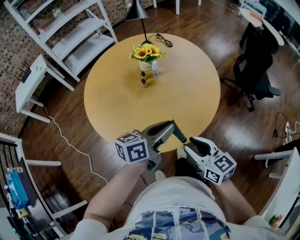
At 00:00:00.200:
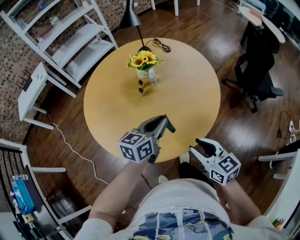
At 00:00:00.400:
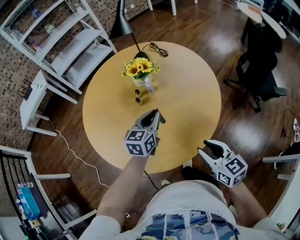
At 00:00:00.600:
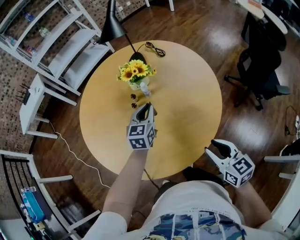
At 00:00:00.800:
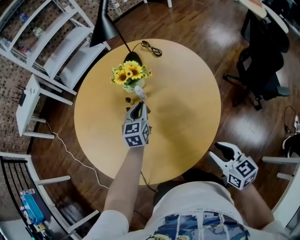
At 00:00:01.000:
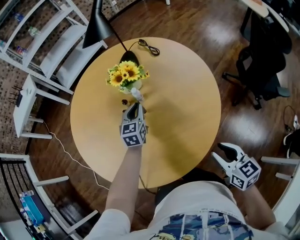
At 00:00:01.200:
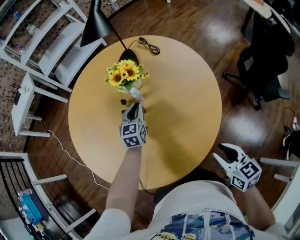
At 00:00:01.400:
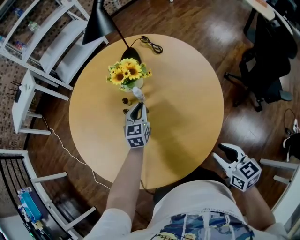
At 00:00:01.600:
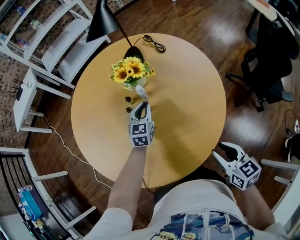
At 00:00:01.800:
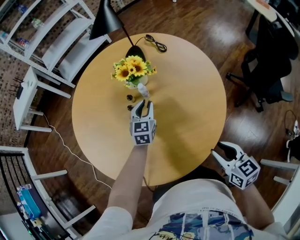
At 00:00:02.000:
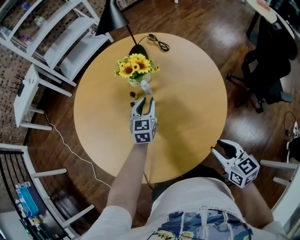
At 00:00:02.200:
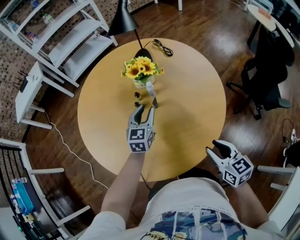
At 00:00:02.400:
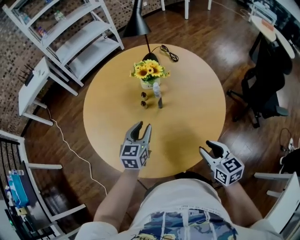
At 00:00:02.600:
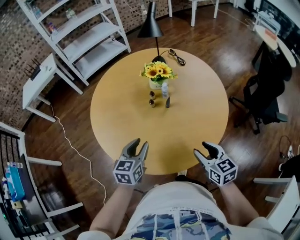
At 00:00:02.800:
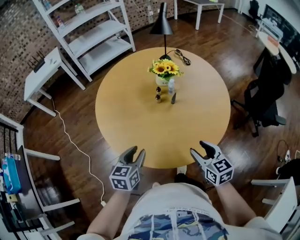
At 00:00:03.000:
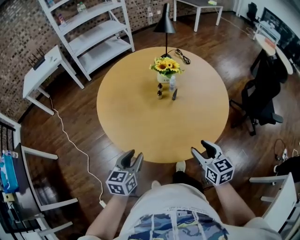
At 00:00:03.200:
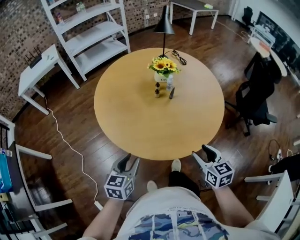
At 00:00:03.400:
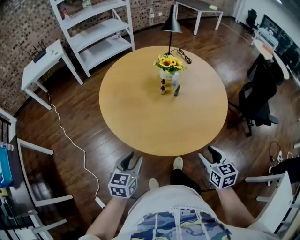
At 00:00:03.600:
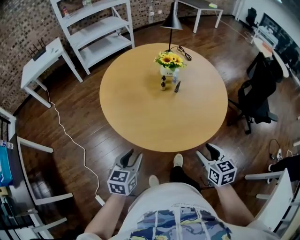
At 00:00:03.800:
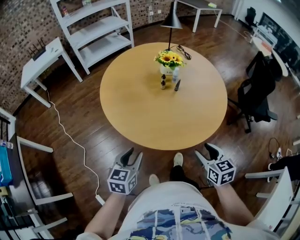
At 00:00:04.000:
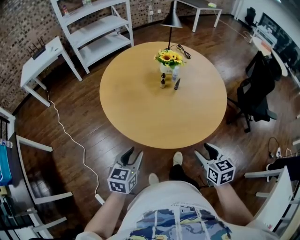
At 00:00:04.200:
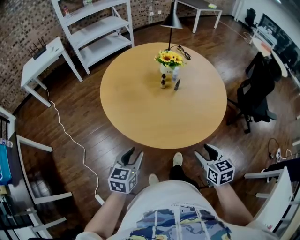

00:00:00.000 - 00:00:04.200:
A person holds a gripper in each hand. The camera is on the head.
00:00:00.000 - 00:00:01.400: The right gripper travels to the right and forward by roughly 30 cm, while the left gripper shifts about 40 cm forward and downward, and turns by about 60 degrees.
00:00:01.400 - 00:00:02.800: The left gripper goes some 40 cm backward and to the left, and opens up; the right gripper is displaced to the left by roughly 20 cm.
00:00:02.800 - 00:00:04.200: The left gripper travels backward and to the left by some 15 cm. The right gripper moves backward, approximately 15 cm.

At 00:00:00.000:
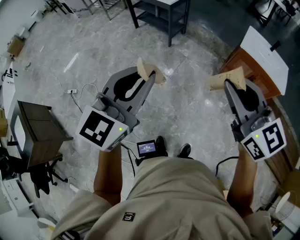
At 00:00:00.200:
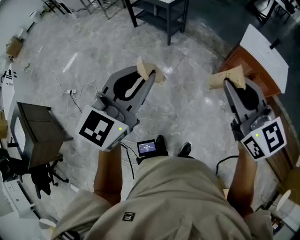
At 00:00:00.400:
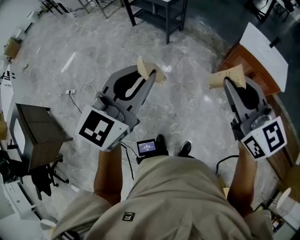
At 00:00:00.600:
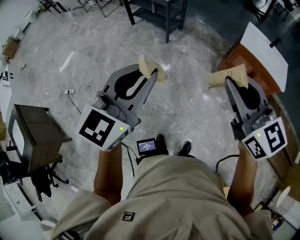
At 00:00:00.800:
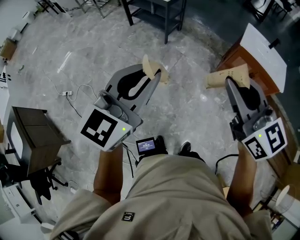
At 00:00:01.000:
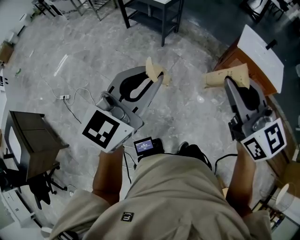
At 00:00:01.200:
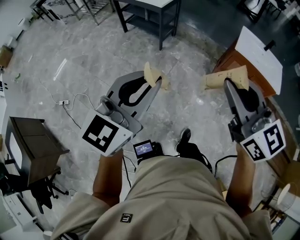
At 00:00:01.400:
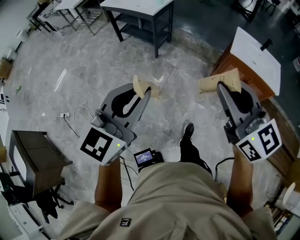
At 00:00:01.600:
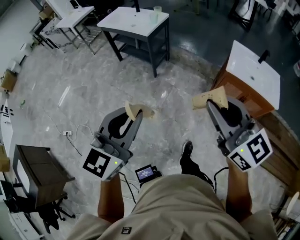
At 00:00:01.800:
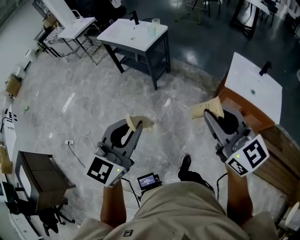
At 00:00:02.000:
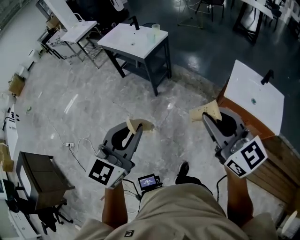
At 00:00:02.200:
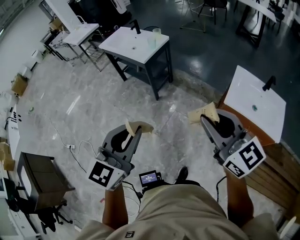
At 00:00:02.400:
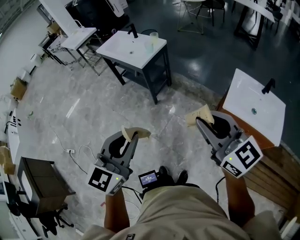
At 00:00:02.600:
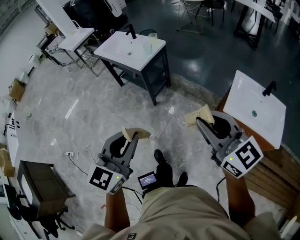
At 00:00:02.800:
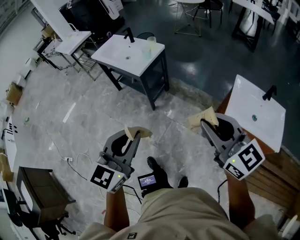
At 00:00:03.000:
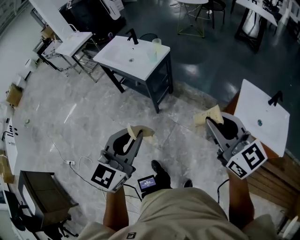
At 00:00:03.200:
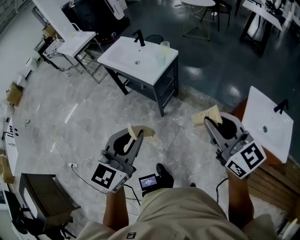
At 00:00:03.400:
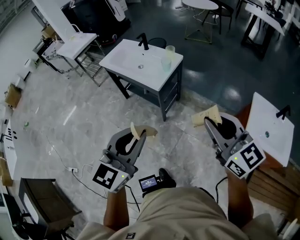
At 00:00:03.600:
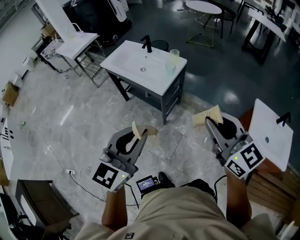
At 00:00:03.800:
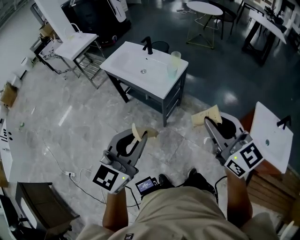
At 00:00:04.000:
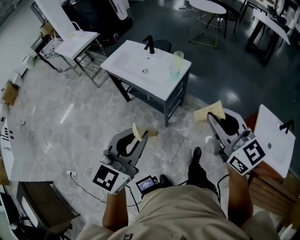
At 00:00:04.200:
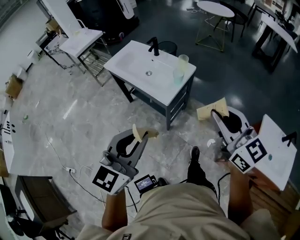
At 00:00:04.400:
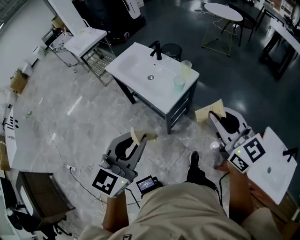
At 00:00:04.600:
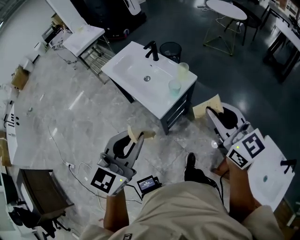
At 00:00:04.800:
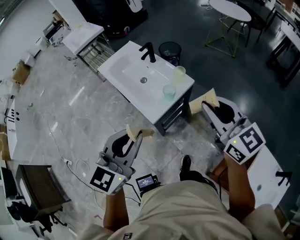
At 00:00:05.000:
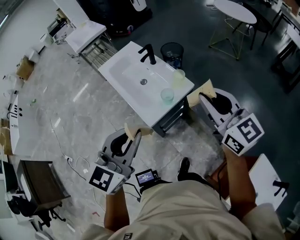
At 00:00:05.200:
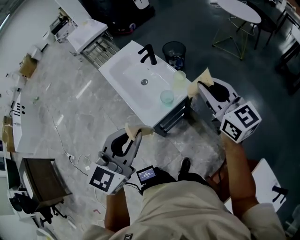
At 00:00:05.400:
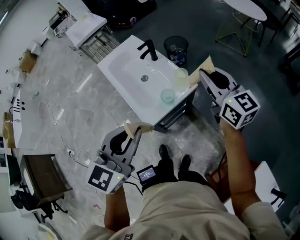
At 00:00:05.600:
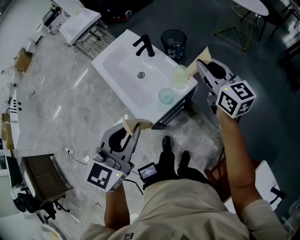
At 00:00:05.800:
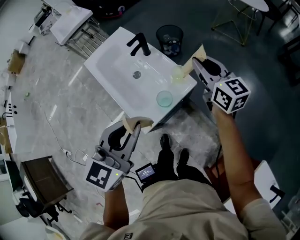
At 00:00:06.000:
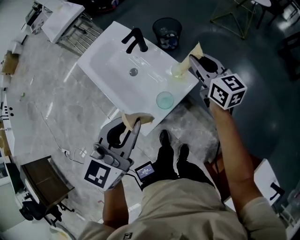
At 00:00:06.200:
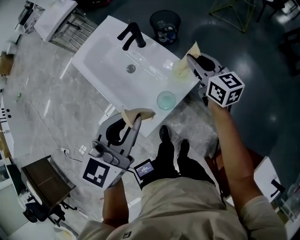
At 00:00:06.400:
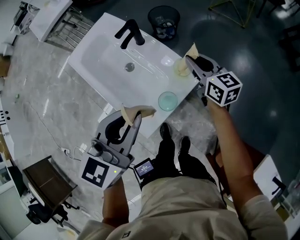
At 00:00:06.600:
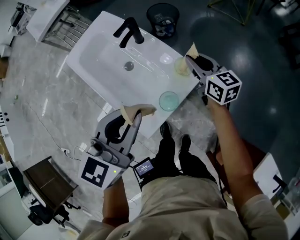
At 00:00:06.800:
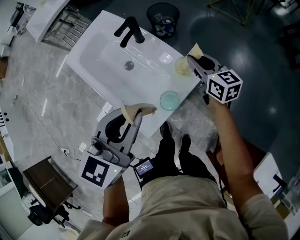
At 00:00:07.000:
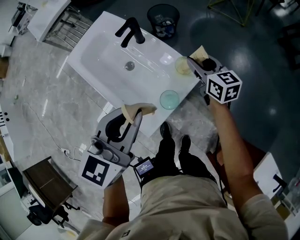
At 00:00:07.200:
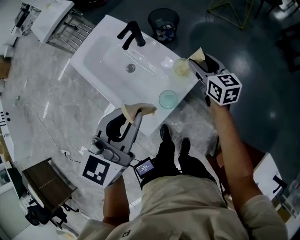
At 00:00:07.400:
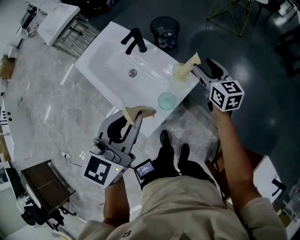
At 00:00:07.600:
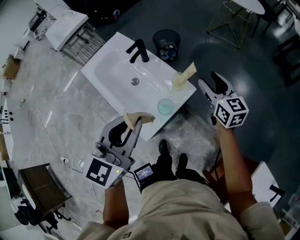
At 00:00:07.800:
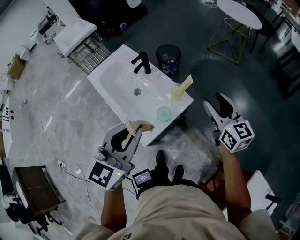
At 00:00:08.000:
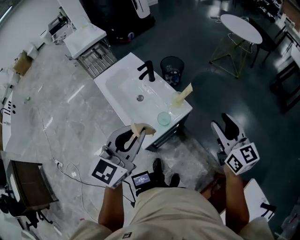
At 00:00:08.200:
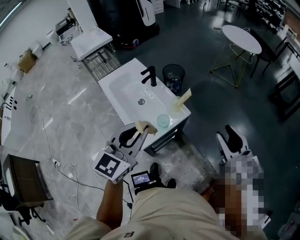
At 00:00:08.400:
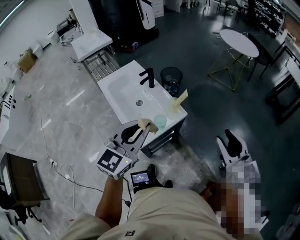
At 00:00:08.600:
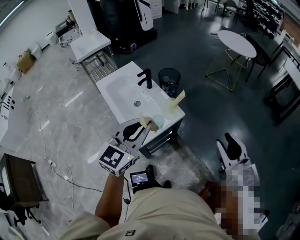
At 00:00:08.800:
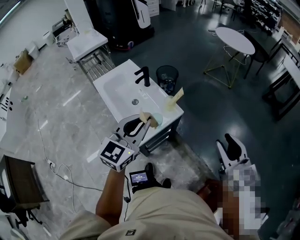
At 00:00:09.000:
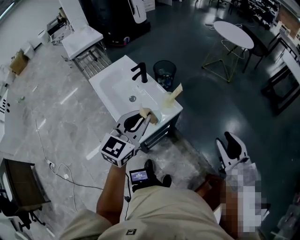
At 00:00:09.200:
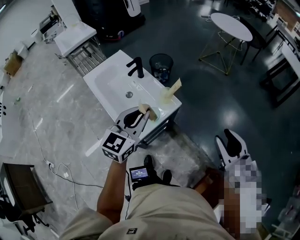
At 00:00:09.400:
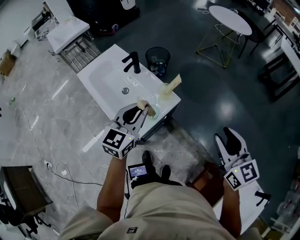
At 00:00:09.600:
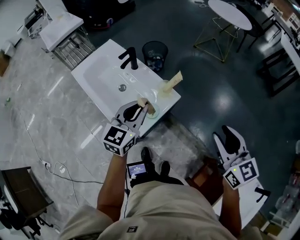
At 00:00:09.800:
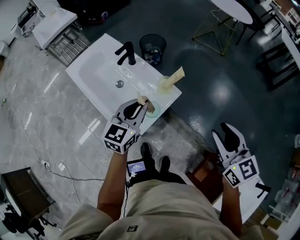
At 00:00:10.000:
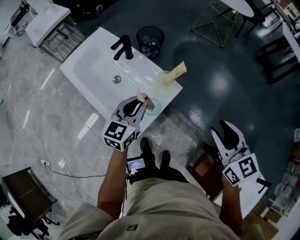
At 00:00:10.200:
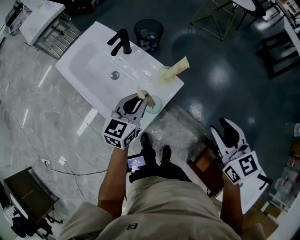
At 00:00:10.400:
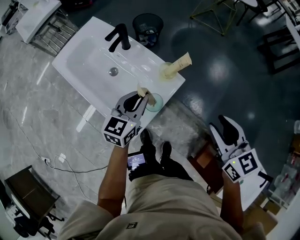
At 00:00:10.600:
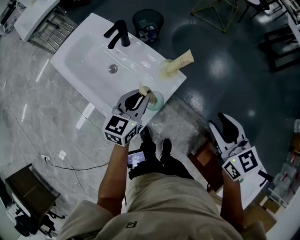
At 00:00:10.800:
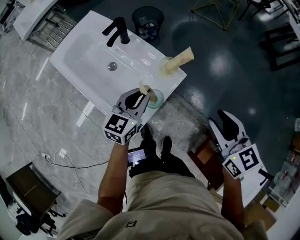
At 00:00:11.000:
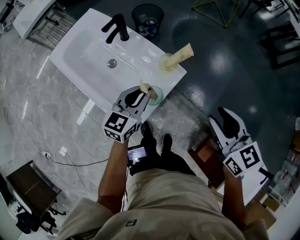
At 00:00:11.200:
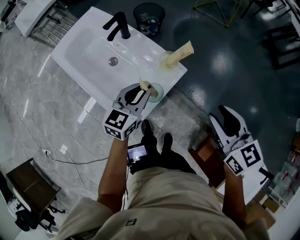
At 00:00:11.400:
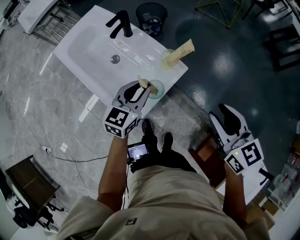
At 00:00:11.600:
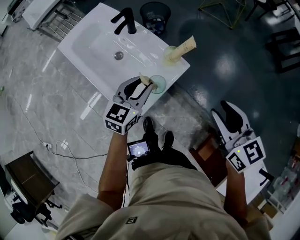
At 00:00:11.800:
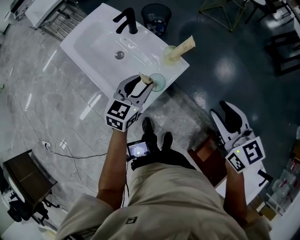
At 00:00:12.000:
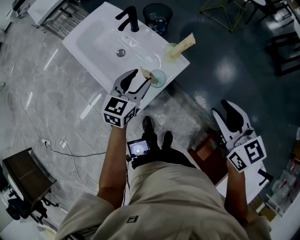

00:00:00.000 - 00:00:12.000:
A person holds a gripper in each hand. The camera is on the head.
00:00:00.000 - 00:00:01.600: Both grippers travel together forward, about 15 cm.
00:00:01.600 - 00:00:03.000: The two grippers go about 30 cm forward.
00:00:03.000 - 00:00:04.400: The grippers both shift forward by about 30 cm.
00:00:04.400 - 00:00:06.000: The right gripper heads forward, covering some 50 cm. The left gripper shifts about 35 cm forward and to the right.
00:00:06.000 - 00:00:07.600: The right gripper travels to the right by approximately 5 cm, reaches roughly 10 cm downward, then returns, and opens up.
00:00:07.600 - 00:00:09.000: The right gripper shifts approximately 30 cm backward and upward. Meanwhile the left gripper shifts about 5 cm to the right.
00:00:09.000 - 00:00:10.400: The left gripper shifts roughly 25 cm downward and forward, and swivels about 20 degrees. Meanwhile the right gripper shifts about 20 cm downward, to the left and forward.
00:00:10.400 - 00:00:12.000: The left gripper opens its fingers.

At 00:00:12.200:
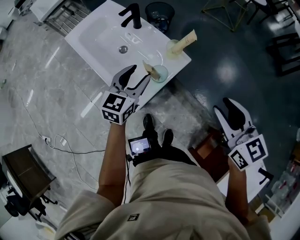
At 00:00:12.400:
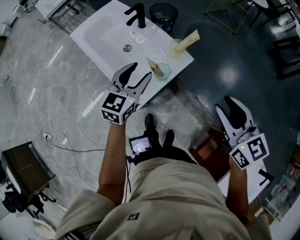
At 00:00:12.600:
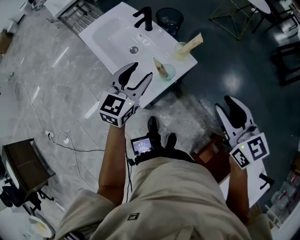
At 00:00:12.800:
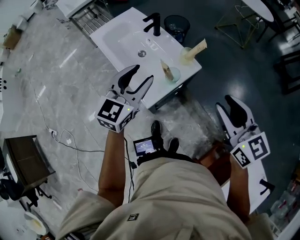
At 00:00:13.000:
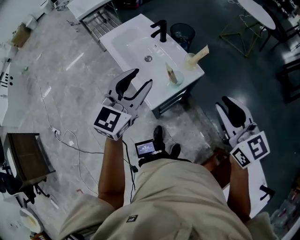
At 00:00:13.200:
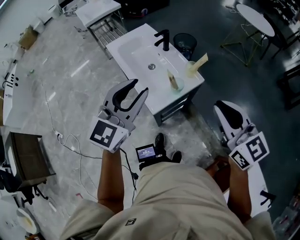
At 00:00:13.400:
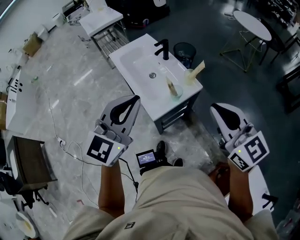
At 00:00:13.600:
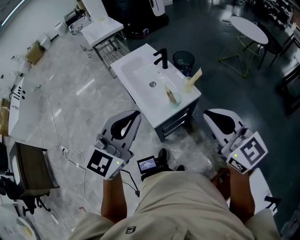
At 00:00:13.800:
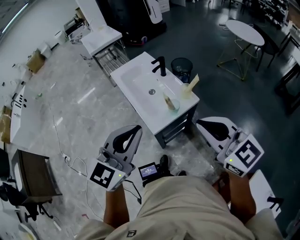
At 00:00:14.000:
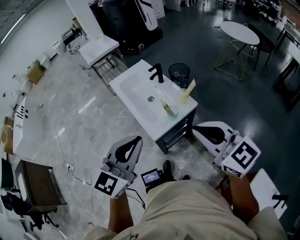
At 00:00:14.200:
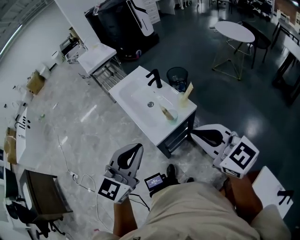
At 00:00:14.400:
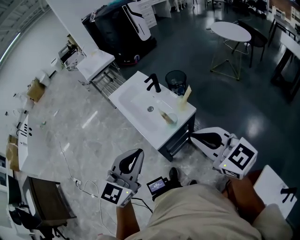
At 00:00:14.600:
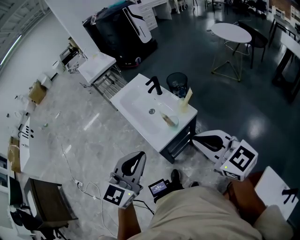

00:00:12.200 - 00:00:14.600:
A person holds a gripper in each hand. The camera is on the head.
00:00:12.200 - 00:00:13.400: The left gripper is displaced upward and backward by about 35 cm, rotates about 30 degrees, and closes up. Meanwhile the right gripper goes about 20 cm upward, backward and to the left, turns by some 30 degrees, and closes.
00:00:13.400 - 00:00:14.600: The left gripper travels backward by roughly 5 cm.

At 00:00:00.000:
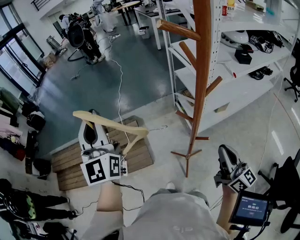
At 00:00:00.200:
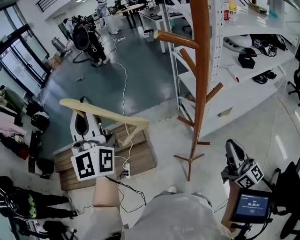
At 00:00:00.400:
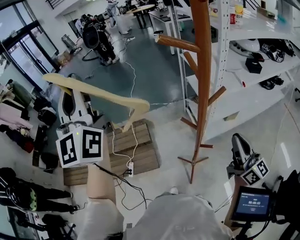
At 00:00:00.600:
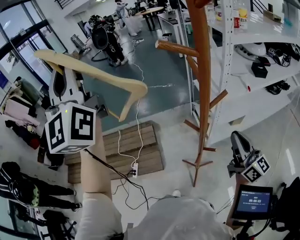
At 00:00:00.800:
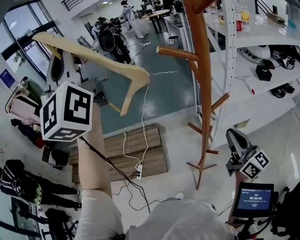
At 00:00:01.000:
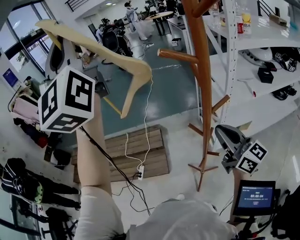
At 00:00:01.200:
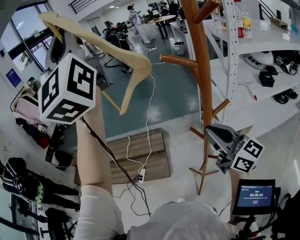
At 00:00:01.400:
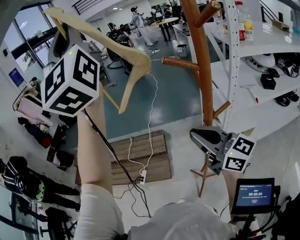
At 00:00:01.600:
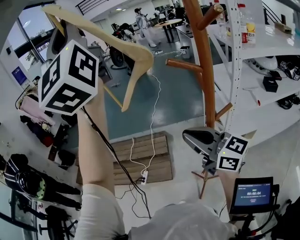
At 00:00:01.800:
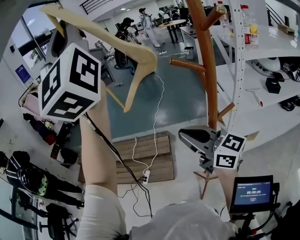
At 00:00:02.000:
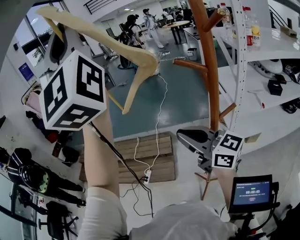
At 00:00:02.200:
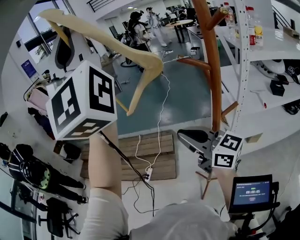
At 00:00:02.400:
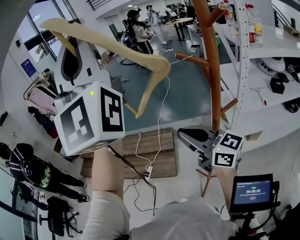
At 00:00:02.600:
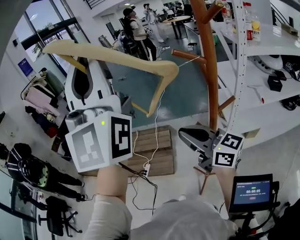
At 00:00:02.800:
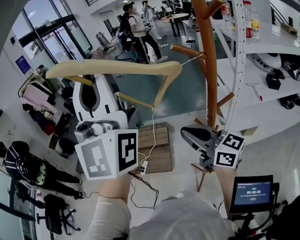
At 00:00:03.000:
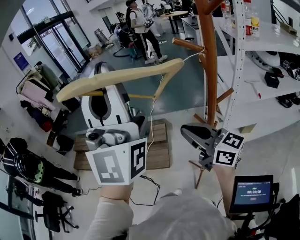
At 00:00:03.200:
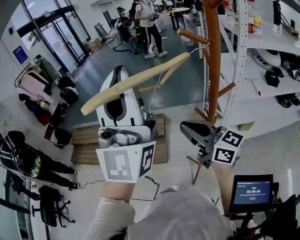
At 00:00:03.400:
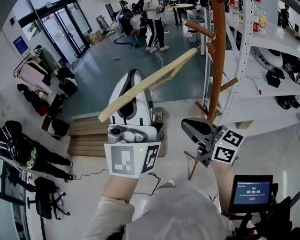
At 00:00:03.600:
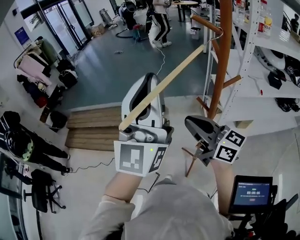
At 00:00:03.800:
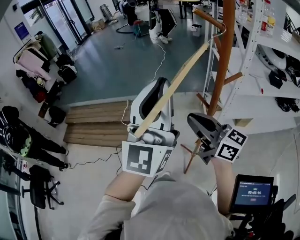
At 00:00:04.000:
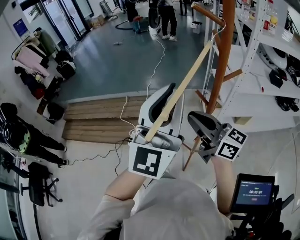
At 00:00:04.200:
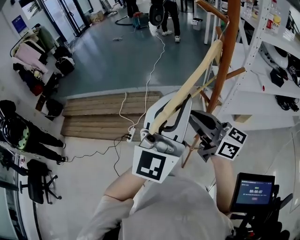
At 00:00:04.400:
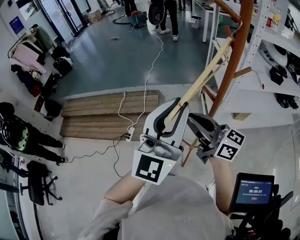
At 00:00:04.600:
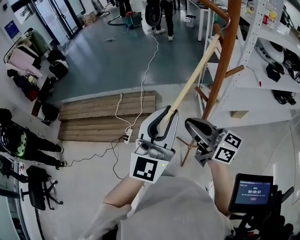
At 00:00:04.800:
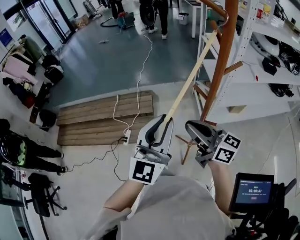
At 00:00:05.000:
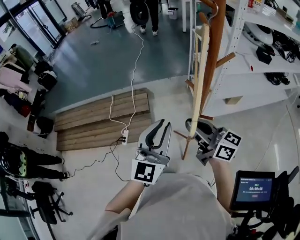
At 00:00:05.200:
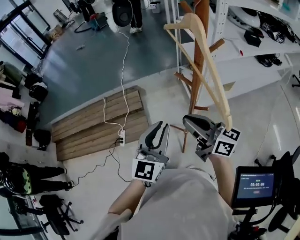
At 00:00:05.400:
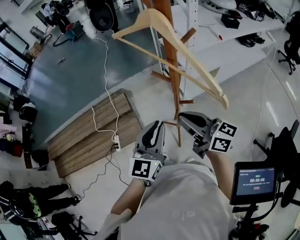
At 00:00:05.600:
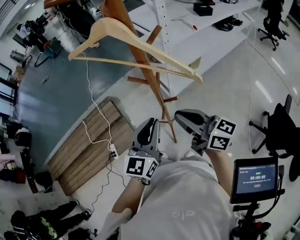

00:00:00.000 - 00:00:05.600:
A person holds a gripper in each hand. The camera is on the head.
00:00:00.000 - 00:00:01.400: The left gripper travels upward by about 35 cm, and swivels some 30 degrees, while the right gripper is displaced upward, forward and to the left by about 20 cm, and changes its angle by roughly 40 degrees.
00:00:01.400 - 00:00:02.800: The left gripper moves downward and backward, some 15 cm. Meanwhile the right gripper shifts approximately 5 cm to the left.
00:00:02.800 - 00:00:04.200: The right gripper moves downward, about 5 cm, while the left gripper goes approximately 25 cm downward, and swivels approximately 30 degrees.
00:00:04.200 - 00:00:05.600: The left gripper travels downward by approximately 25 cm, and changes its angle by approximately 40 degrees; the right gripper shifts by roughly 15 cm, and rotates approximately 30 degrees.
